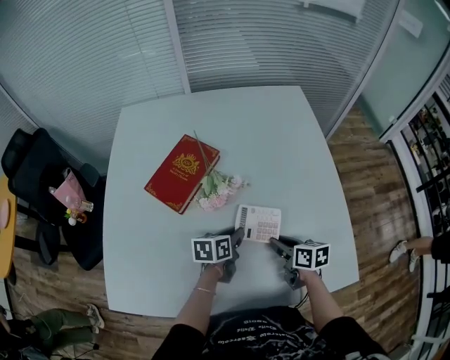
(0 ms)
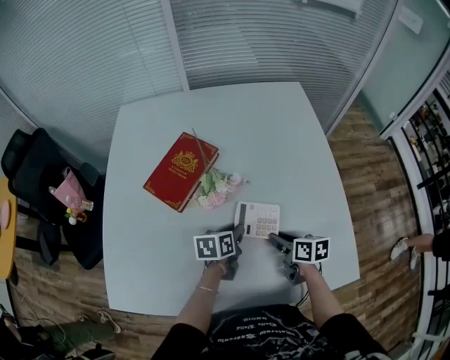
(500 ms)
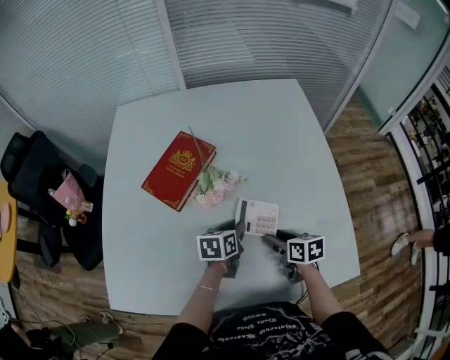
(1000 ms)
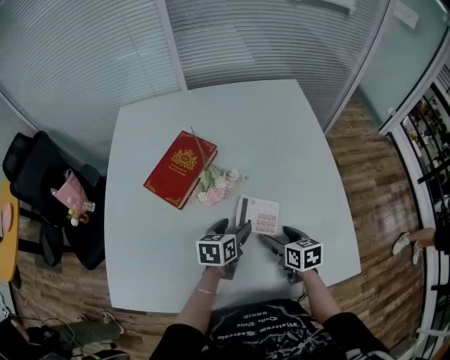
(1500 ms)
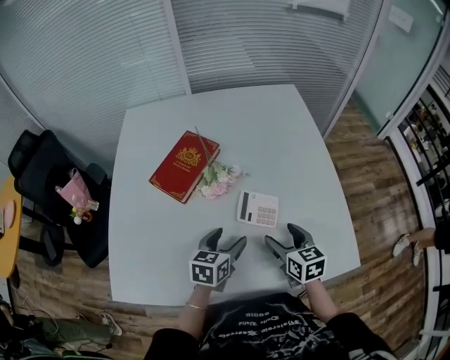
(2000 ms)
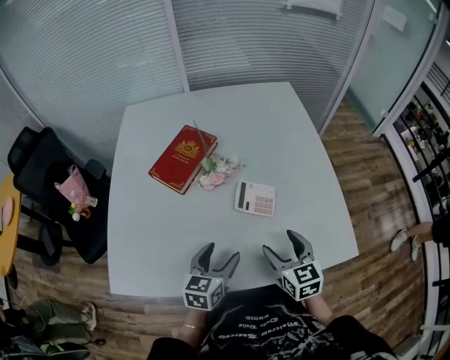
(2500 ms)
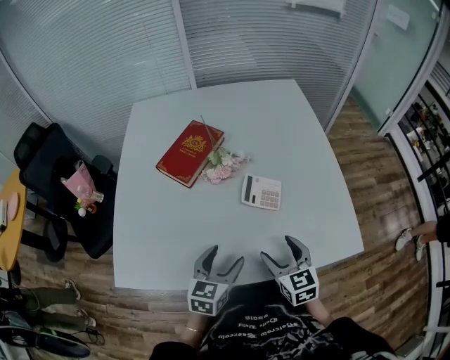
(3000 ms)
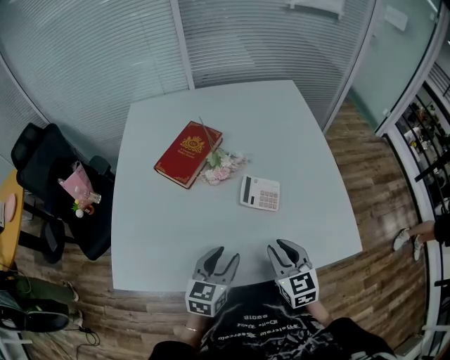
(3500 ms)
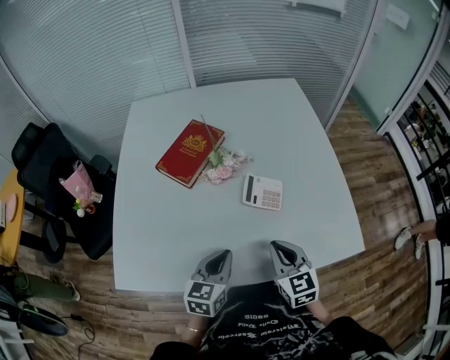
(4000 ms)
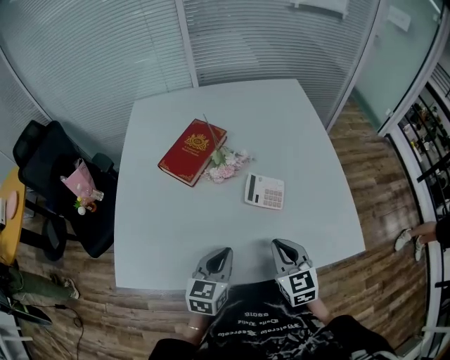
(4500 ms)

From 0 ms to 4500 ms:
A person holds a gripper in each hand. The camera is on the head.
From 0 ms to 2000 ms: The left gripper is displaced backward and upward by approximately 10 cm, turns by about 20 degrees, and opens. The right gripper is displaced upward by approximately 5 cm, changes its angle by about 30 degrees, and opens up.
From 2000 ms to 4500 ms: Both grippers travel together backward, about 10 cm. The left gripper closes up. The right gripper closes its fingers.

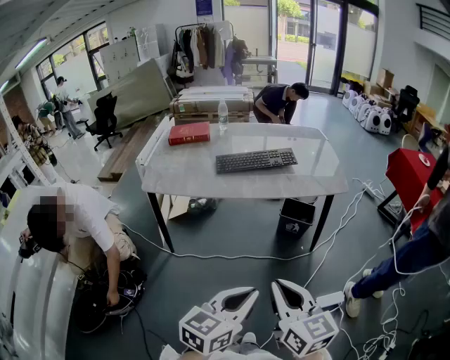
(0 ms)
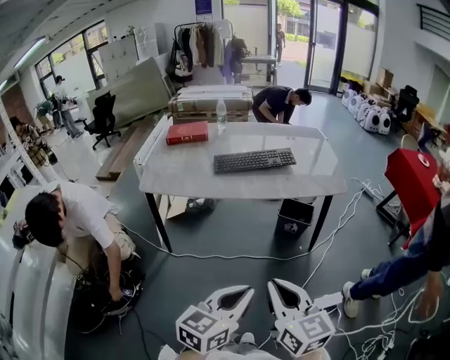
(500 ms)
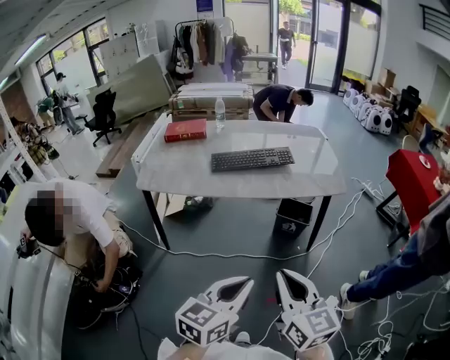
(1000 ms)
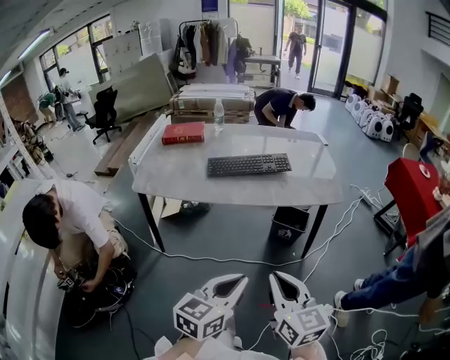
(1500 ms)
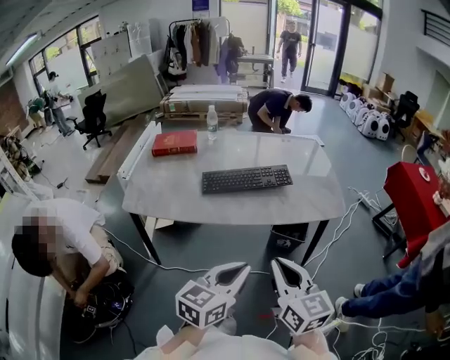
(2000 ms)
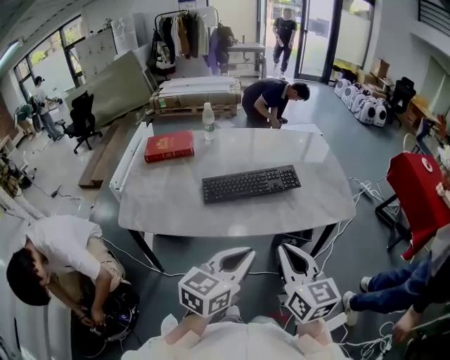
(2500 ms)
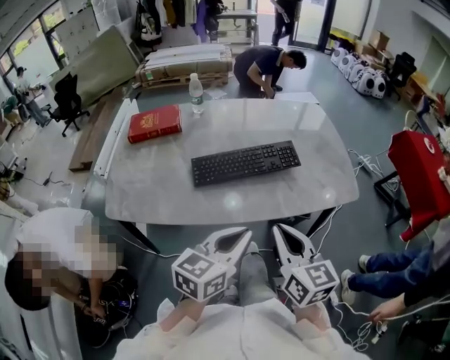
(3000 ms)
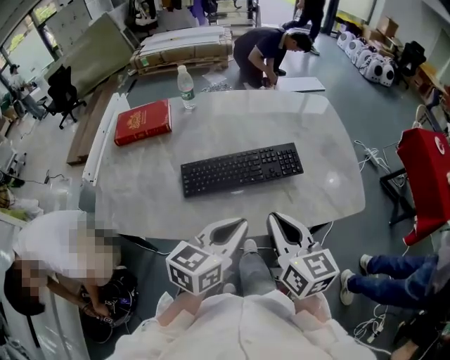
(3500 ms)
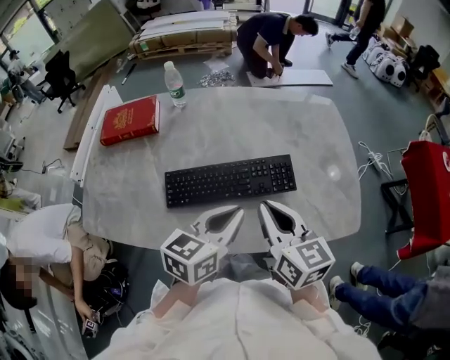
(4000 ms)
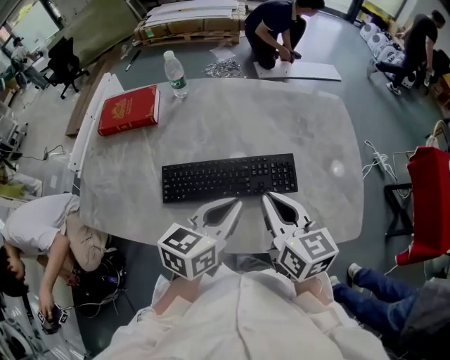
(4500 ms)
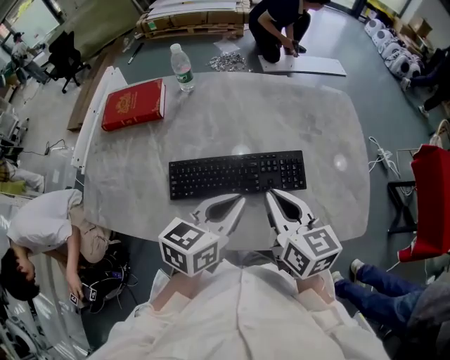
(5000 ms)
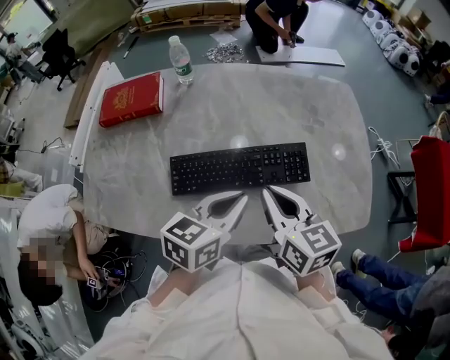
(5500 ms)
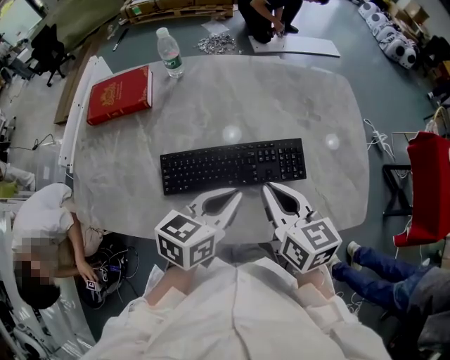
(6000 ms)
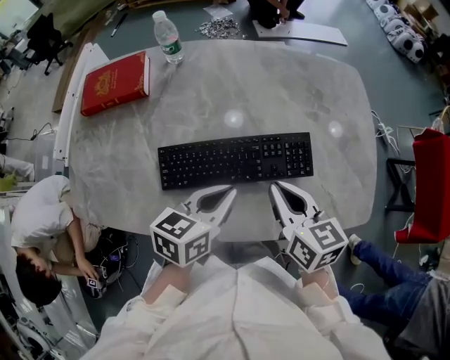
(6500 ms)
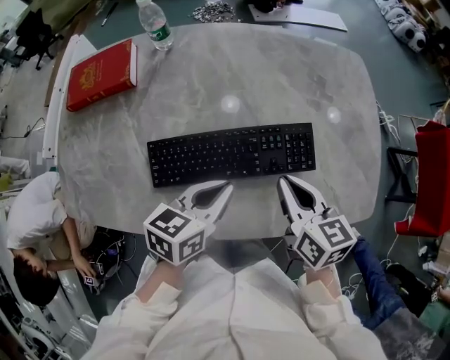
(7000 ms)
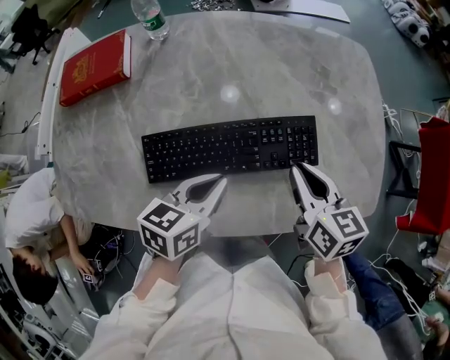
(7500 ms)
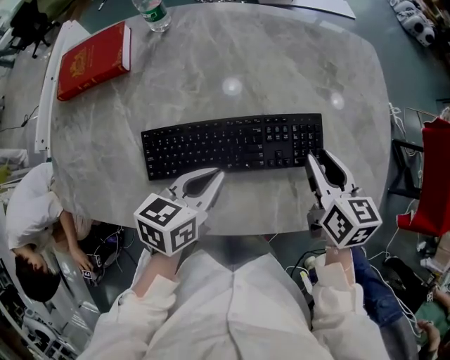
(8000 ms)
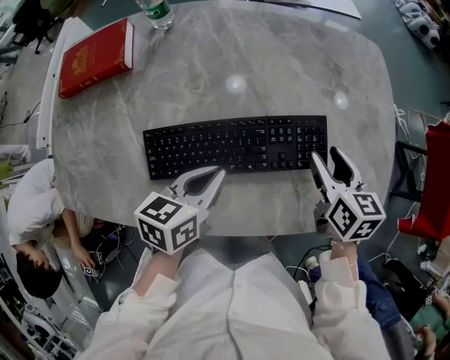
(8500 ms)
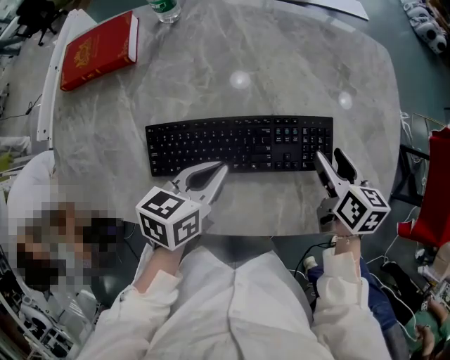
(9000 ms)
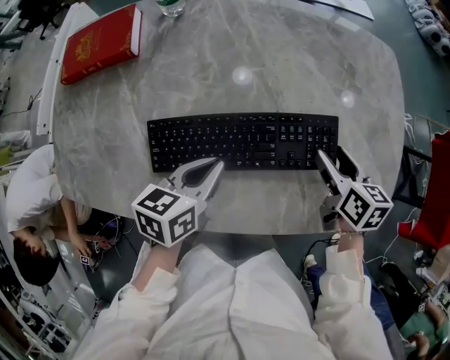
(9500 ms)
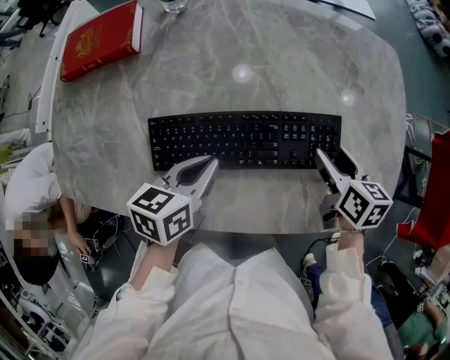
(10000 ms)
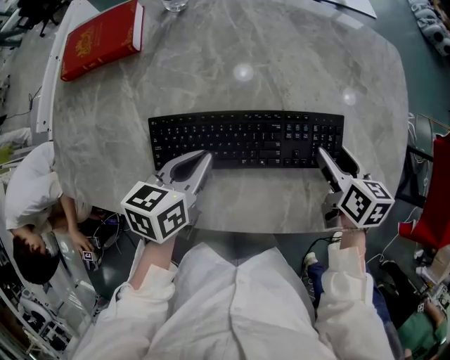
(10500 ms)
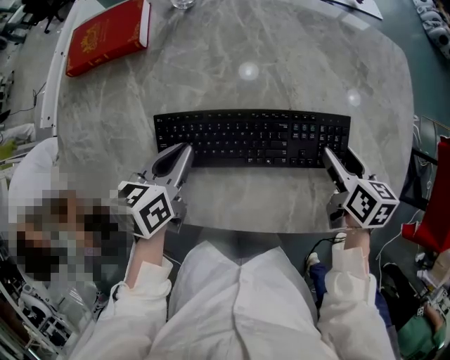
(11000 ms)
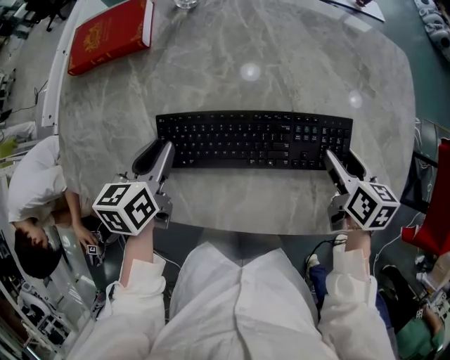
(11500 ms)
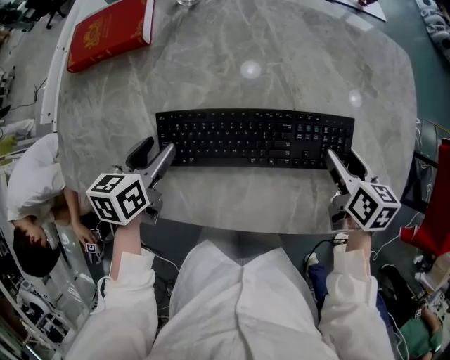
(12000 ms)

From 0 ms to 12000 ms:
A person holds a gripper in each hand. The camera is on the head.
From 0 ms to 2000 ms: The two grippers go some 20 cm forward.
From 2000 ms to 4000 ms: The grippers both shift forward by some 40 cm.
From 4000 ms to 6000 ms: The right gripper changes place by approximately 5 cm. The left gripper shifts by roughly 5 cm.
From 6000 ms to 8000 ms: The left gripper moves downward, some 10 cm. The right gripper heads to the right, downward and forward, covering about 15 cm, and opens up.
From 8000 ms to 10000 ms: The right gripper heads downward, covering approximately 5 cm, and opens up.
From 10000 ms to 12000 ms: The left gripper goes approximately 15 cm to the left, and opens its fingers.

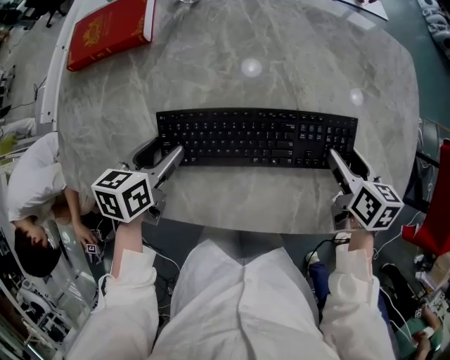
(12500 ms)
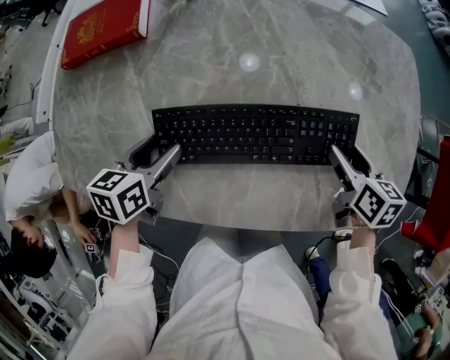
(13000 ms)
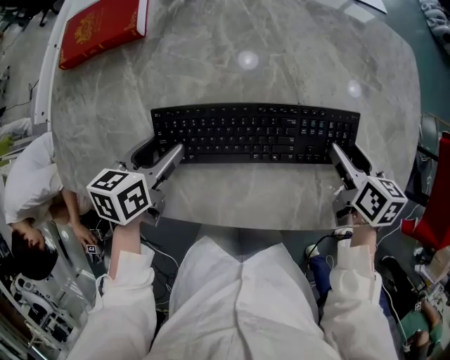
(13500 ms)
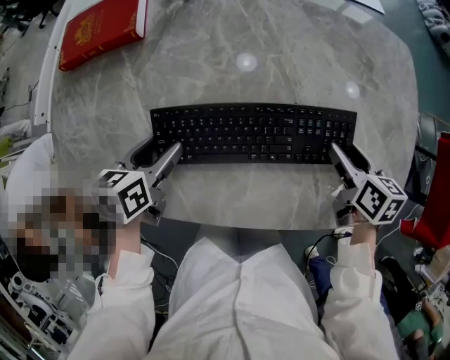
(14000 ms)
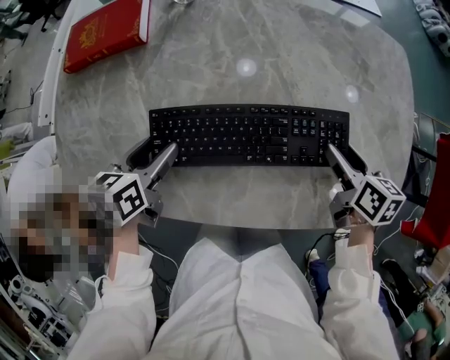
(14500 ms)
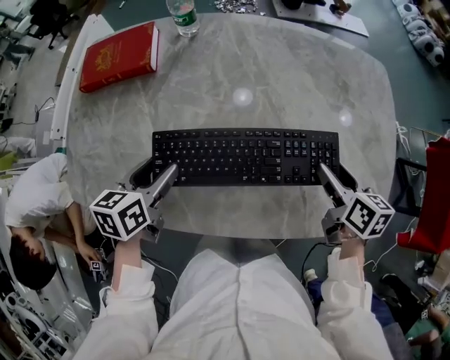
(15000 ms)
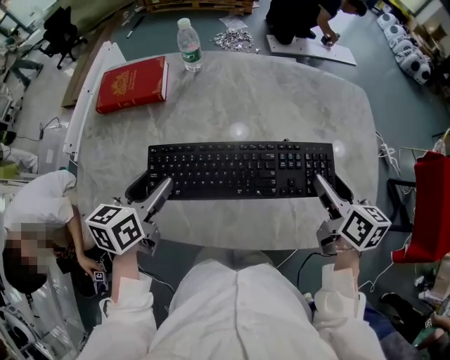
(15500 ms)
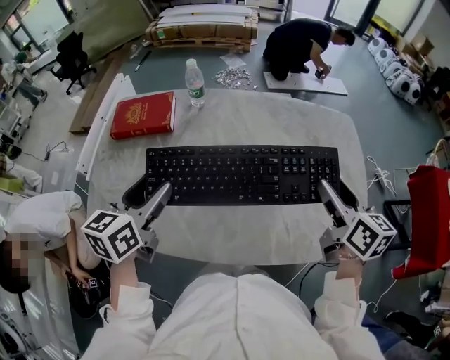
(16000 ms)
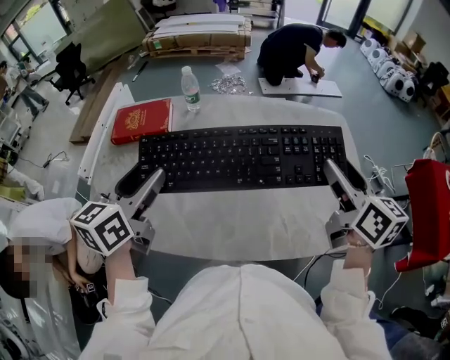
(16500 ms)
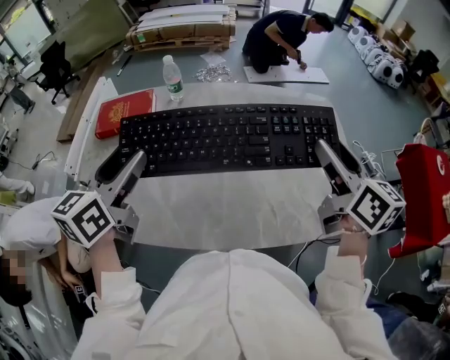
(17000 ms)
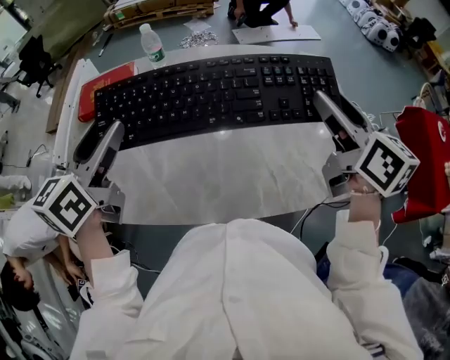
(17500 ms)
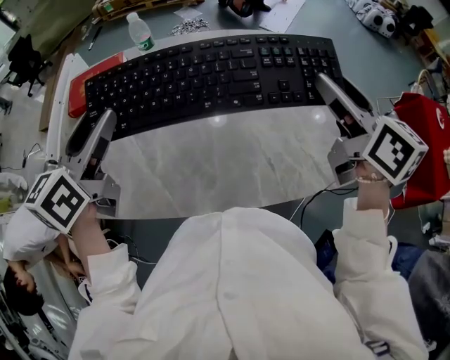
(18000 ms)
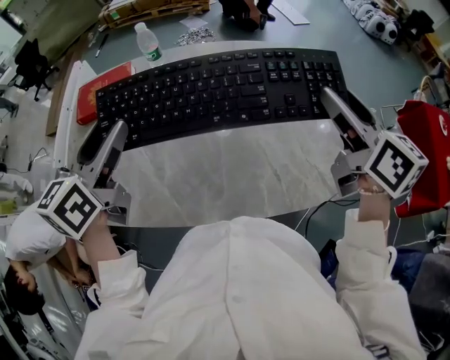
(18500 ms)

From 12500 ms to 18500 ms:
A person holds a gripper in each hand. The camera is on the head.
From 12500 ms to 14500 ms: There are only small adjustments of the grippers.
From 14500 ms to 16500 ms: The right gripper heads upward, covering roughly 5 cm, and swivels approximately 20 degrees; the left gripper changes its angle by some 20 degrees.
From 16500 ms to 18500 ms: There are only small adjustments of the grippers.

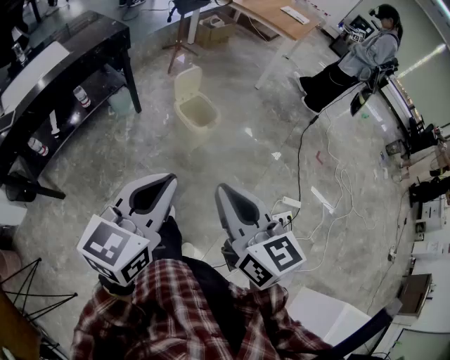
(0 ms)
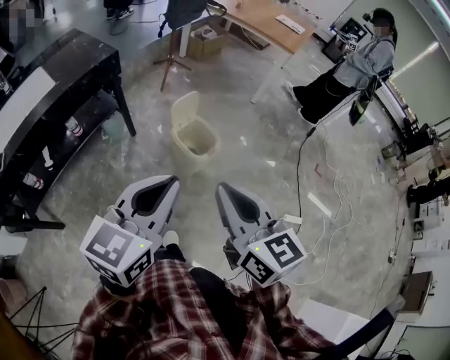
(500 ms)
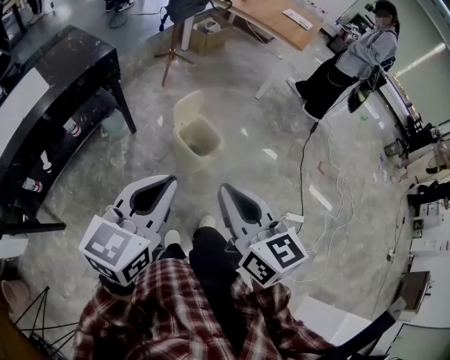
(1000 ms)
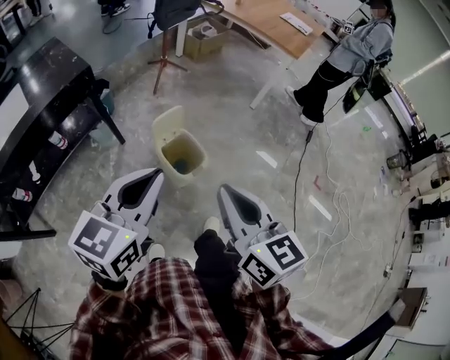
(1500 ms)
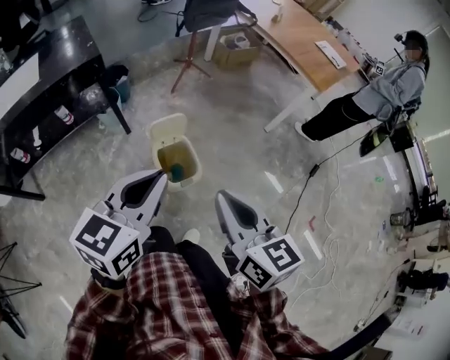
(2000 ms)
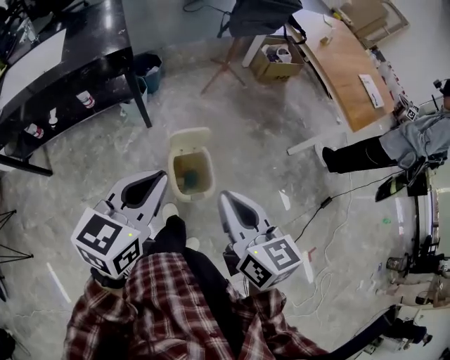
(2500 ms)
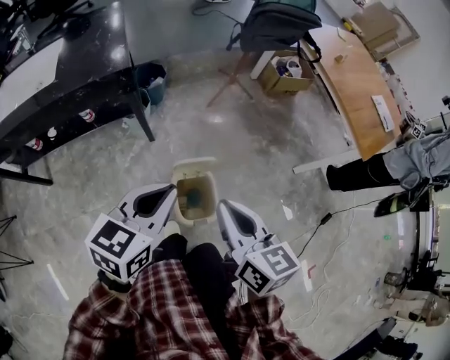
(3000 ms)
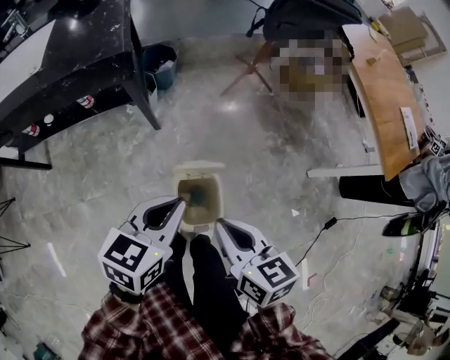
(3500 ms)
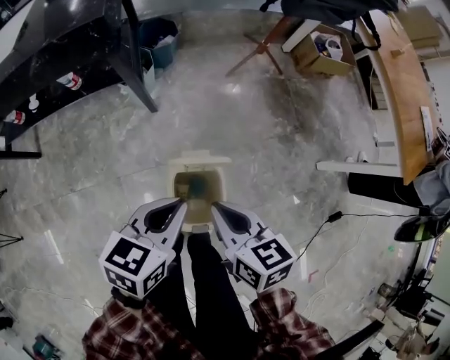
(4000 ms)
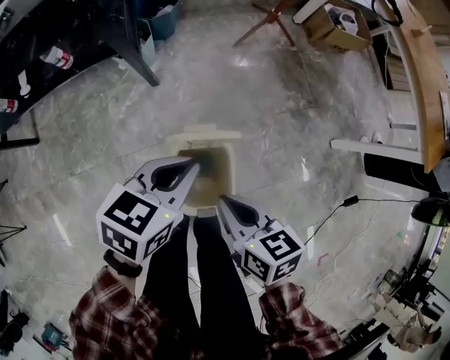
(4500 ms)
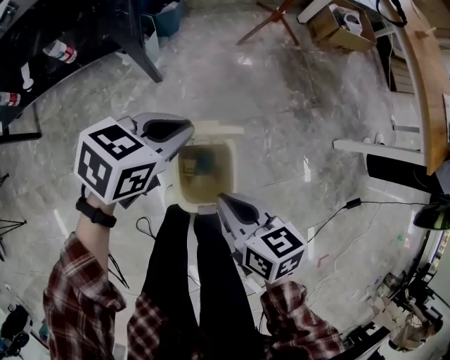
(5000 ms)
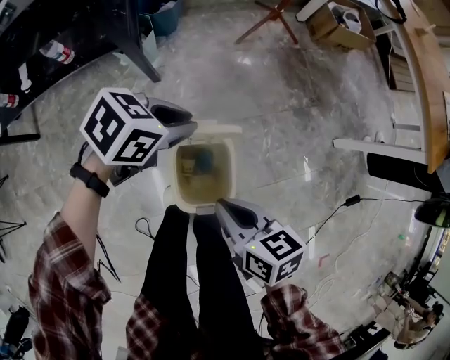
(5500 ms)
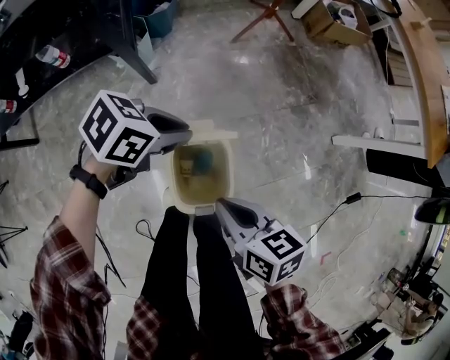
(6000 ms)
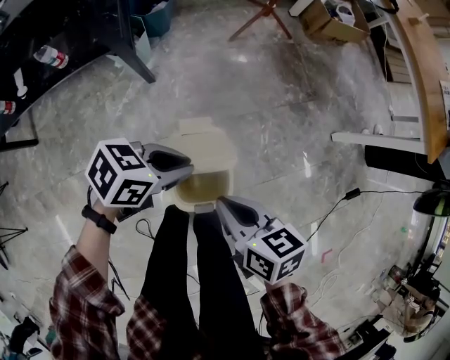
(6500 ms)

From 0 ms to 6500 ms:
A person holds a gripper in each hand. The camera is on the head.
From 0 ms to 2000 ms: Both grippers are carried forward, approximately 40 cm.
From 2000 ms to 4500 ms: Both grippers move downward and forward, some 50 cm. The right gripper changes its angle by about 40 degrees. Meanwhile the left gripper rotates approximately 30 degrees.
From 4500 ms to 6500 ms: The left gripper goes approximately 5 cm downward, and turns by roughly 30 degrees.
